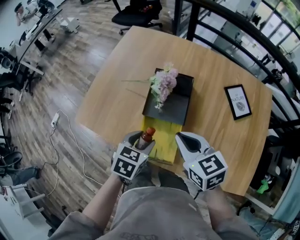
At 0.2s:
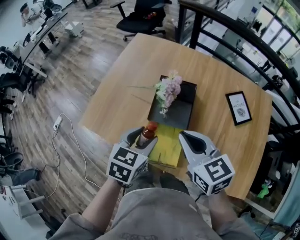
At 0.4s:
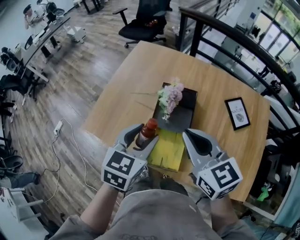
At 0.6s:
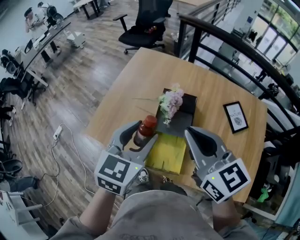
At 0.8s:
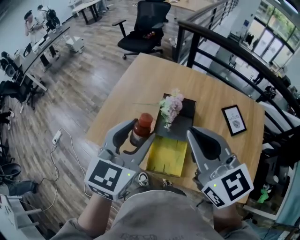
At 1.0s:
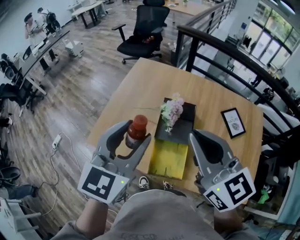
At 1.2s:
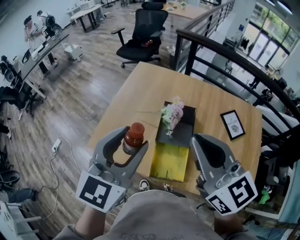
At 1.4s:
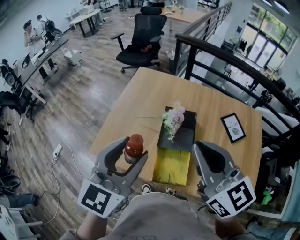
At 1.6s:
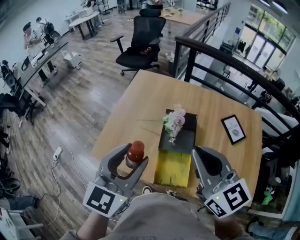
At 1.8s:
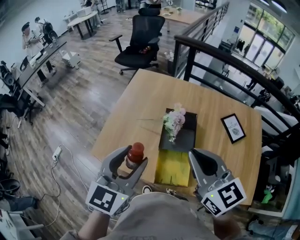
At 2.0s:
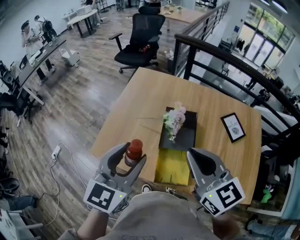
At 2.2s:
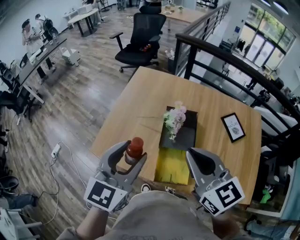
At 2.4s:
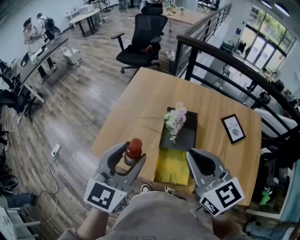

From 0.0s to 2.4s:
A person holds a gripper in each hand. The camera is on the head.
From 0.0s to 1.2s: The grippers both shift upward by approximately 30 cm. The right gripper swivels some 30 degrees; the left gripper angles its fingers upward, by some 40 degrees.
From 1.2s to 2.4s: The left gripper changes place by about 5 cm. Meanwhile the right gripper moves downward, about 5 cm.

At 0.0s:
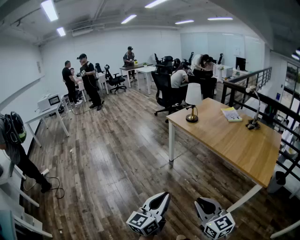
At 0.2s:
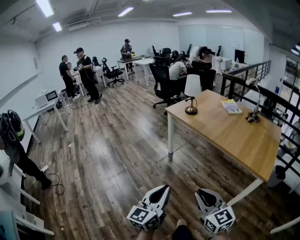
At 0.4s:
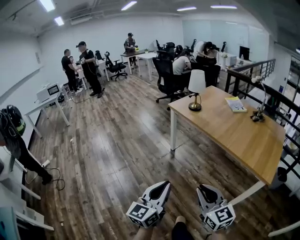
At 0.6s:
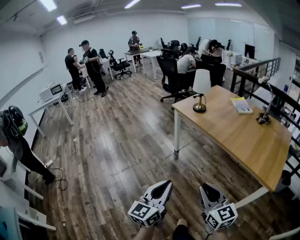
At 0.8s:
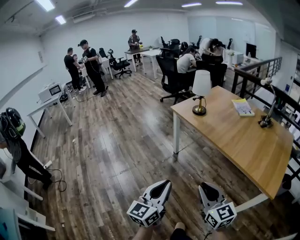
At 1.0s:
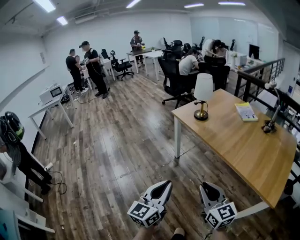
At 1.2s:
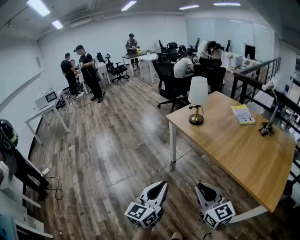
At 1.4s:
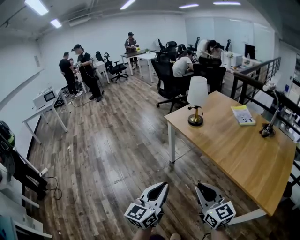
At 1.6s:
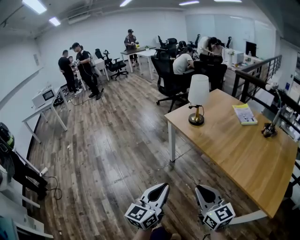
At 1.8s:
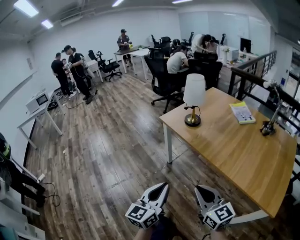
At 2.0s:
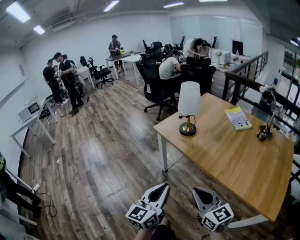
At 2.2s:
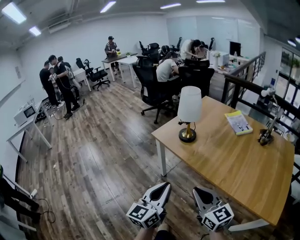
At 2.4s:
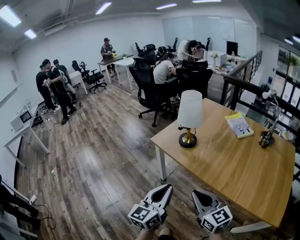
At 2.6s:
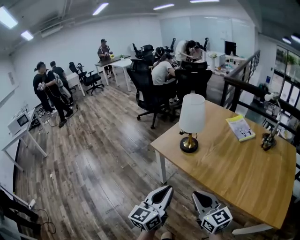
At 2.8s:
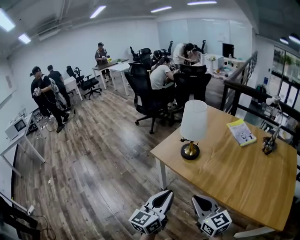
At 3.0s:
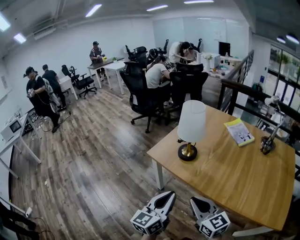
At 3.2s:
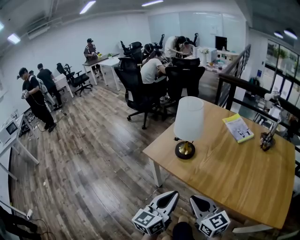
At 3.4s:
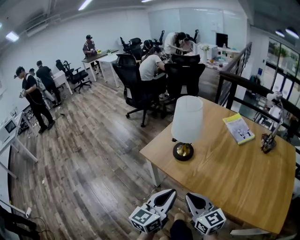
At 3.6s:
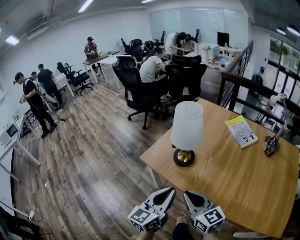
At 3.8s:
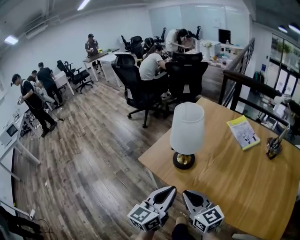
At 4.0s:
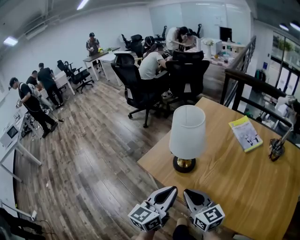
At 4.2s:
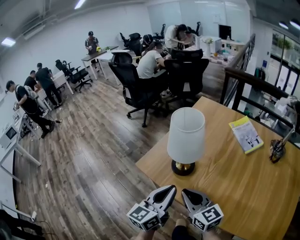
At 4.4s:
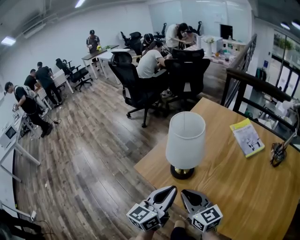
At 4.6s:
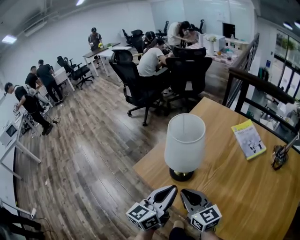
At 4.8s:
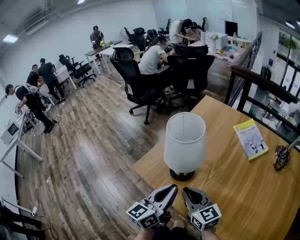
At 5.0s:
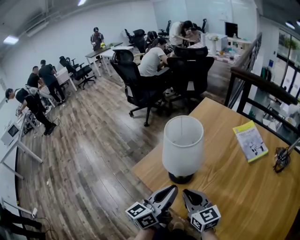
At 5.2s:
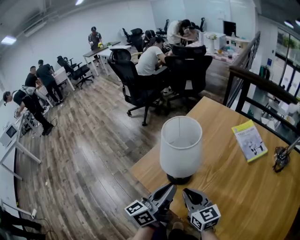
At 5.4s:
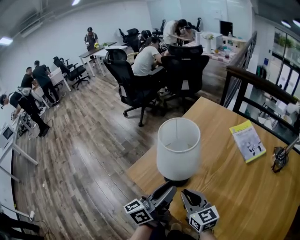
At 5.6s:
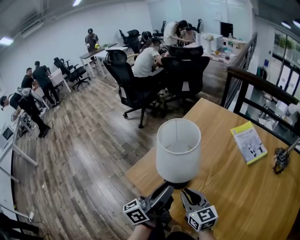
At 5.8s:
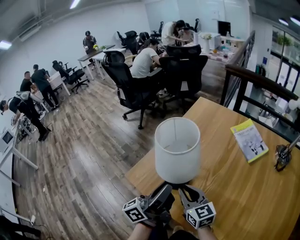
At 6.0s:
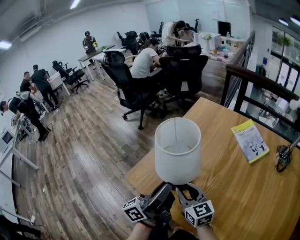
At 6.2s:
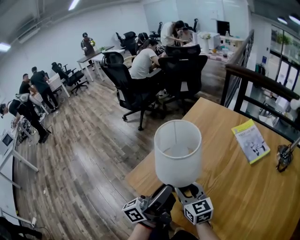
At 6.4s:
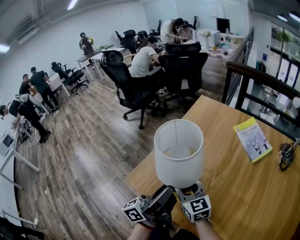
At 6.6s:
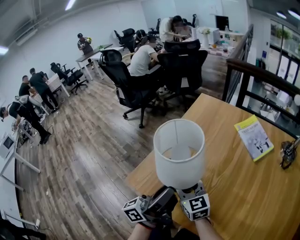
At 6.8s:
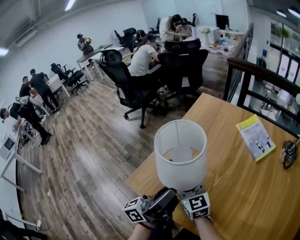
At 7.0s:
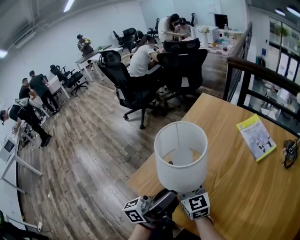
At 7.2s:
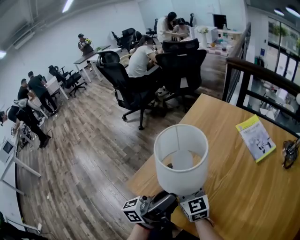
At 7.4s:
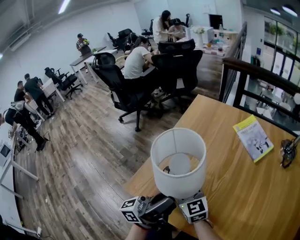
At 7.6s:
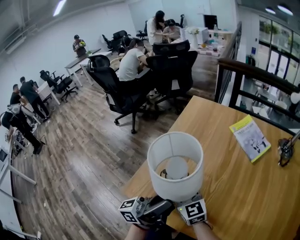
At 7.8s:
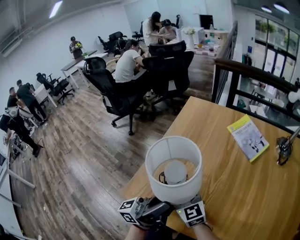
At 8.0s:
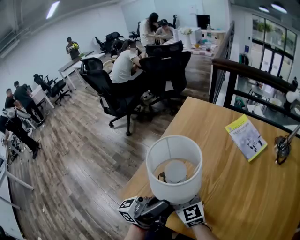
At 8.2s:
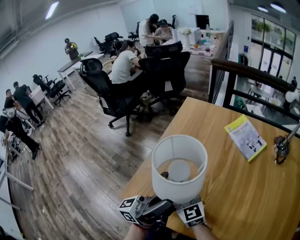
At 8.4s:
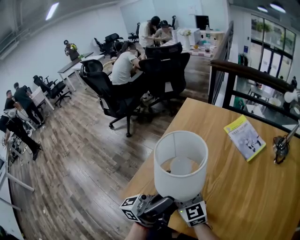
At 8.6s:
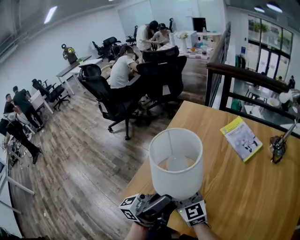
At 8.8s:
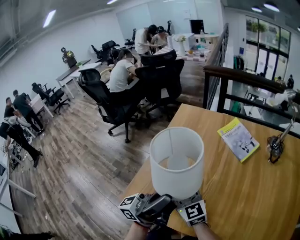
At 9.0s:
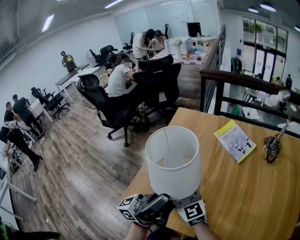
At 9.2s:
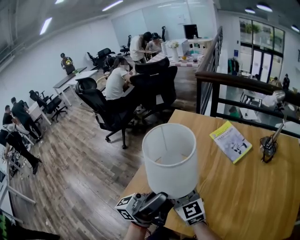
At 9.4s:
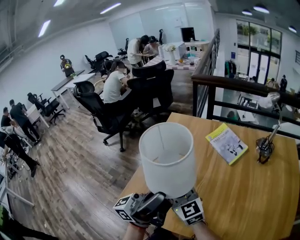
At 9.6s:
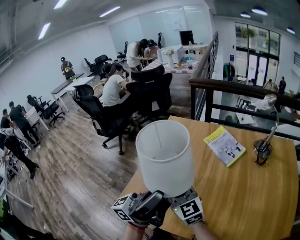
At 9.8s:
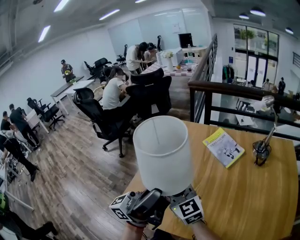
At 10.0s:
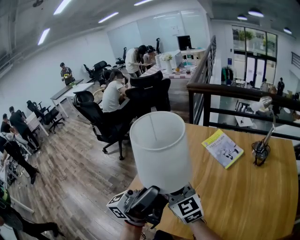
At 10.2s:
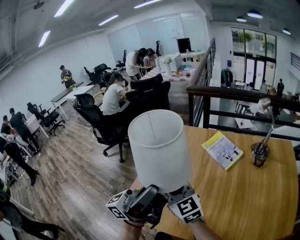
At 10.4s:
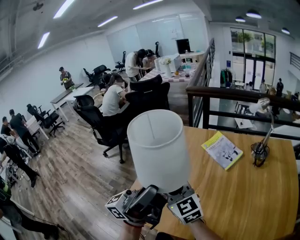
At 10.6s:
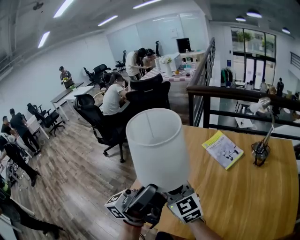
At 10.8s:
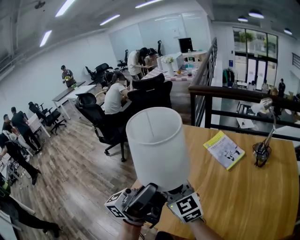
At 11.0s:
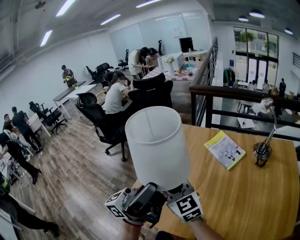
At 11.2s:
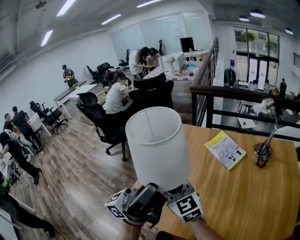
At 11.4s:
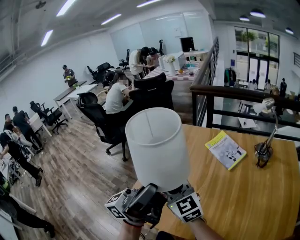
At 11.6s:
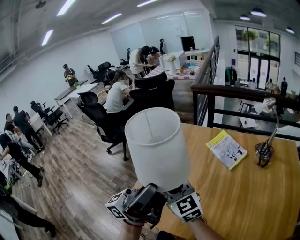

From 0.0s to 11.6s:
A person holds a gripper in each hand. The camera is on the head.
From 0.0s to 1.4s: The two grippers go approximately 30 cm forward.
From 1.4s to 2.8s: Both grippers move forward, some 30 cm.
From 2.8s to 4.4s: The two grippers go about 20 cm forward.
From 4.4s to 5.8s: The left gripper heads forward, covering roughly 10 cm, changes its angle by approximately 40 degrees, and opens its fingers. The right gripper travels forward and downward by roughly 10 cm.
From 5.8s to 7.2s: The right gripper moves forward, about 10 cm, and opens its fingers.
From 7.2s to 8.8s: Both grippers move upward, approximately 5 cm. The left gripper rotates about 20 degrees, and closes its fingers.
From 8.8s to 10.2s: Both grippers move upward, approximately 10 cm.
From 10.2s to 11.6s: The grippers stay close to where they were, moving slightly.

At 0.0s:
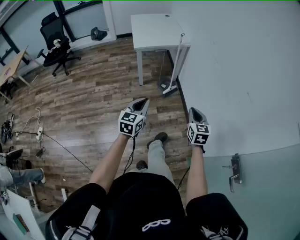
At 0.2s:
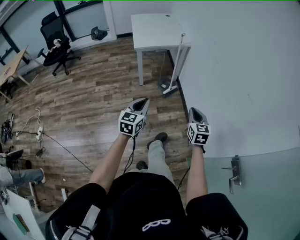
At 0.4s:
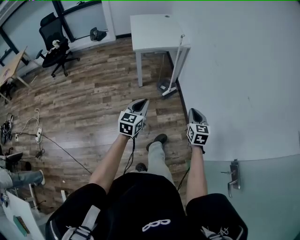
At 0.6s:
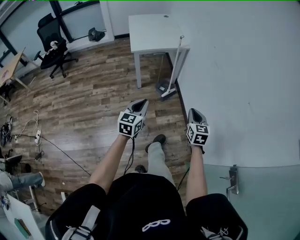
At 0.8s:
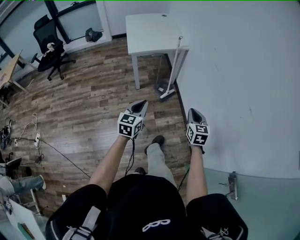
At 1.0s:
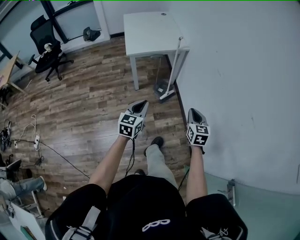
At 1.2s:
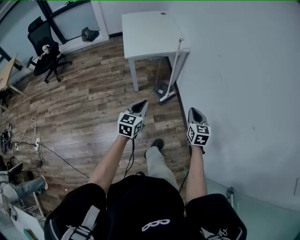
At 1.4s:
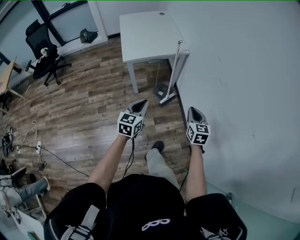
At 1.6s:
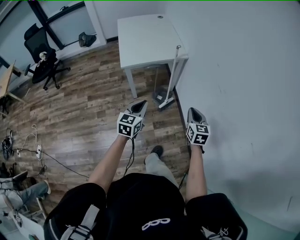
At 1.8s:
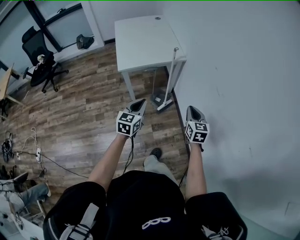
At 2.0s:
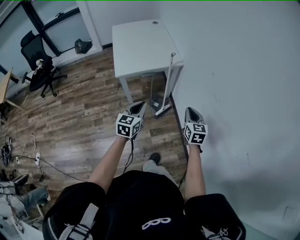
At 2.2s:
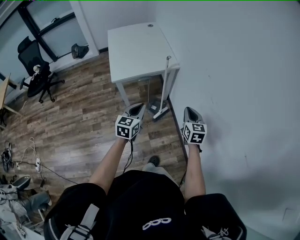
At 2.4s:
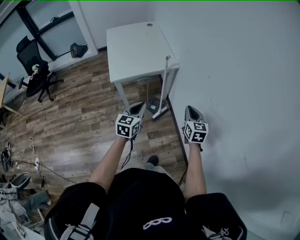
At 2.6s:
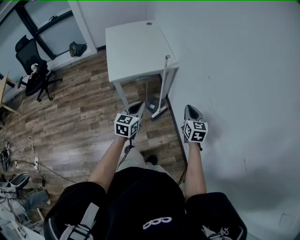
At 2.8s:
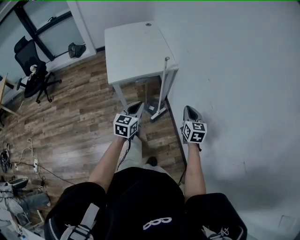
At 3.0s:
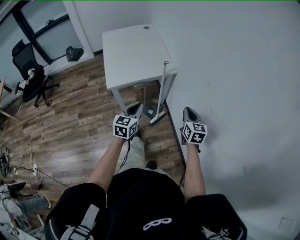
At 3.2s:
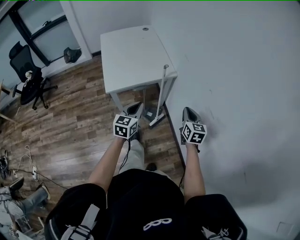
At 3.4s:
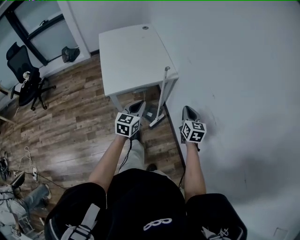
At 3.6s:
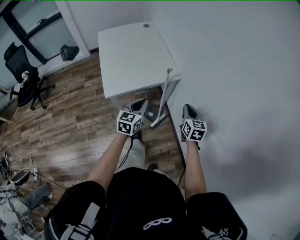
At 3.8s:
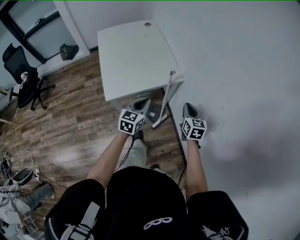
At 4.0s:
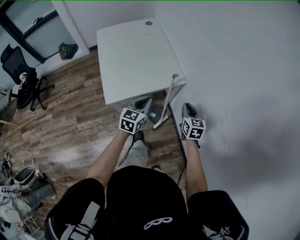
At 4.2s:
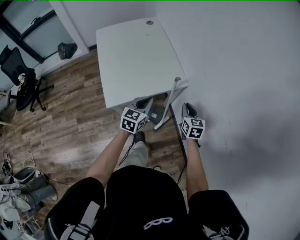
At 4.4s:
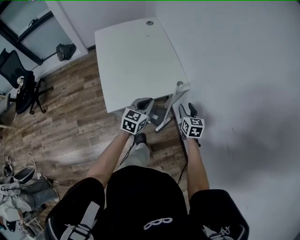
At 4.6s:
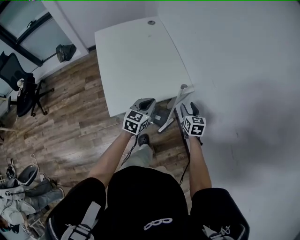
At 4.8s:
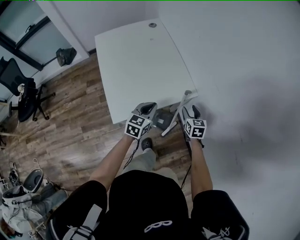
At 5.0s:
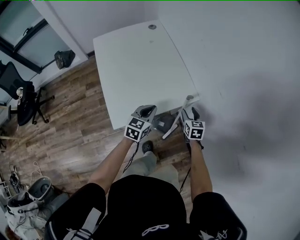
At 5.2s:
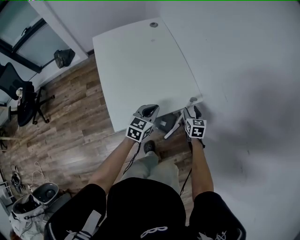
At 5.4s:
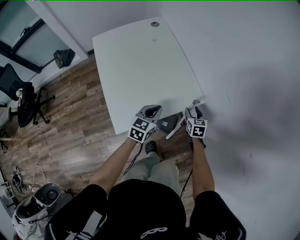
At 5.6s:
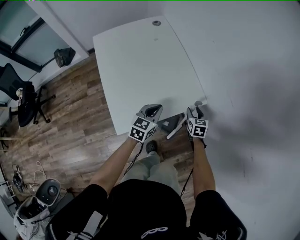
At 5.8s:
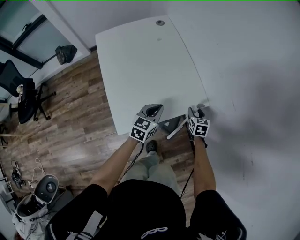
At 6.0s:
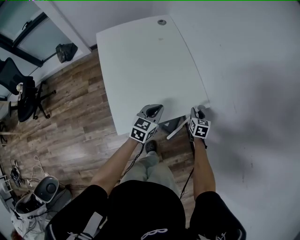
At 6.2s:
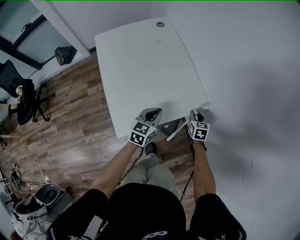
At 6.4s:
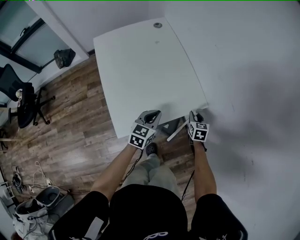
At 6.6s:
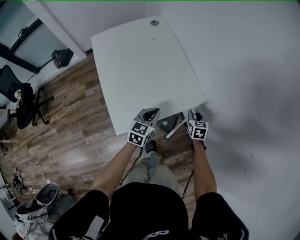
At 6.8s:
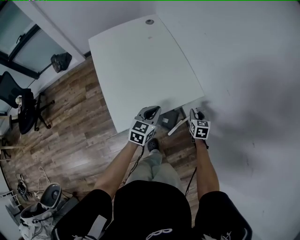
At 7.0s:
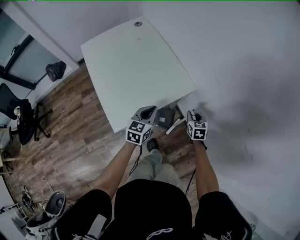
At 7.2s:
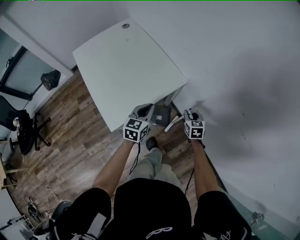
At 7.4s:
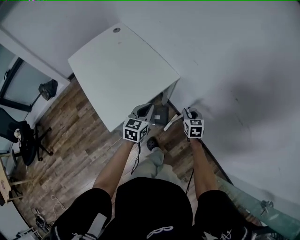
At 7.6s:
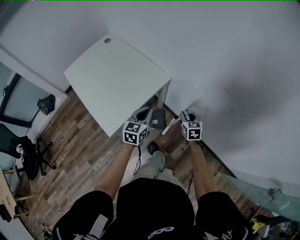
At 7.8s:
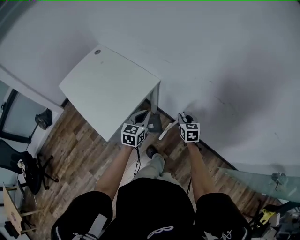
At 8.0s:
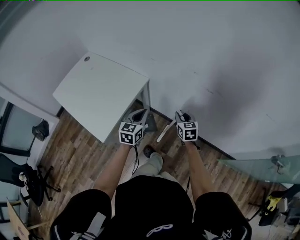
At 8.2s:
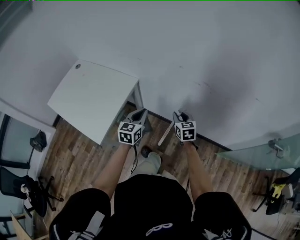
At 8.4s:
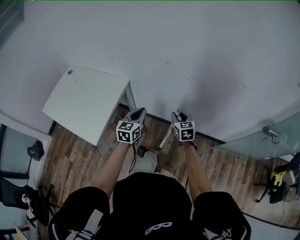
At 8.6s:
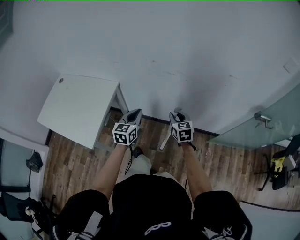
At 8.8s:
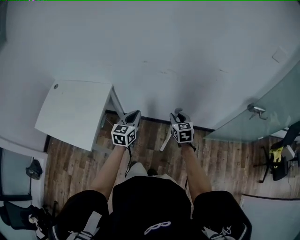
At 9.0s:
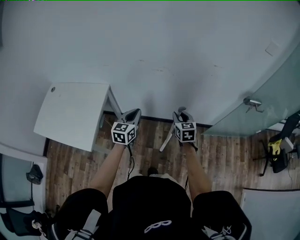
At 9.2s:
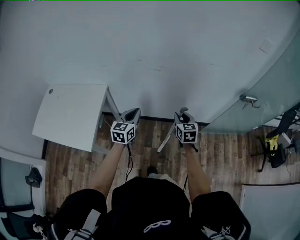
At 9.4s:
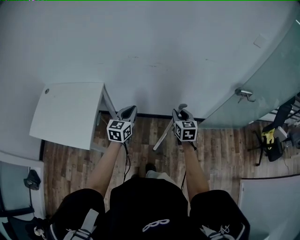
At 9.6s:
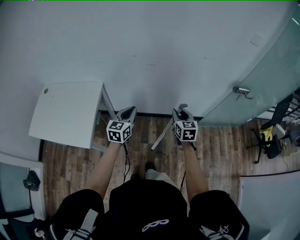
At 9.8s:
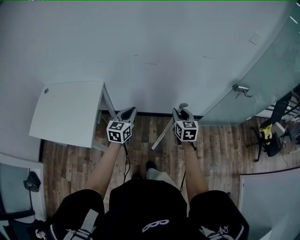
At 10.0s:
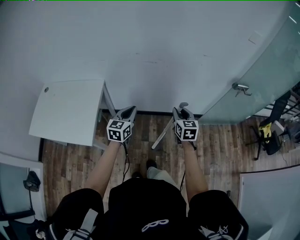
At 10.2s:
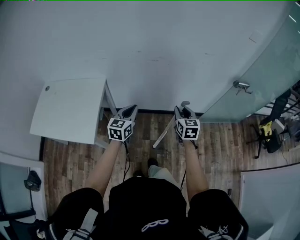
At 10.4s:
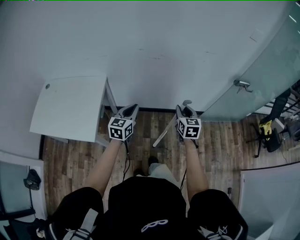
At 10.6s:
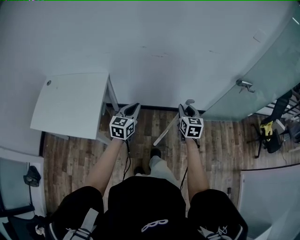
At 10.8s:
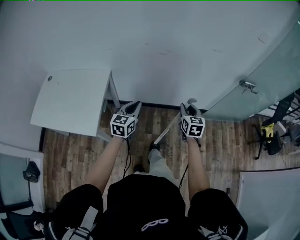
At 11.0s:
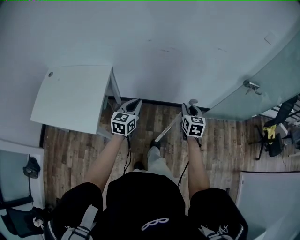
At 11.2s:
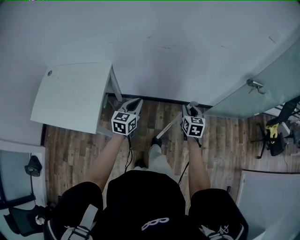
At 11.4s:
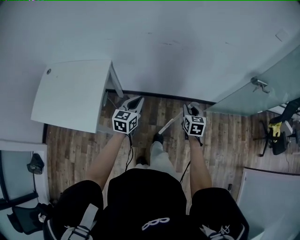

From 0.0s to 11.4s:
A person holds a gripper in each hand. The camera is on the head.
From 0.0s to 1.4s: The two grippers go some 25 cm forward.
From 1.4s to 2.8s: Both grippers move forward, approximately 15 cm.
From 2.8s to 4.2s: The left gripper is displaced forward by some 30 cm. Meanwhile the right gripper travels forward and to the left by roughly 30 cm.
From 4.2s to 5.6s: The right gripper shifts some 20 cm forward, downward and to the left, and opens. Meanwhile the left gripper shifts some 15 cm forward, to the left and downward.
From 5.6s to 7.2s: The right gripper travels backward and to the right by about 15 cm, and closes; the left gripper is displaced backward and to the right by some 10 cm.
From 7.2s to 8.6s: The right gripper changes place by about 40 cm, and swivels approximately 30 degrees. Meanwhile the left gripper moves approximately 35 cm, and rotates roughly 40 degrees.
From 8.6s to 10.0s: The right gripper moves backward, upward and to the right, about 20 cm, and changes its angle by some 20 degrees, while the left gripper shifts roughly 10 cm backward.
From 10.0s to 11.4s: The right gripper moves downward, approximately 10 cm. Meanwhile the left gripper is displaced downward by some 5 cm.
